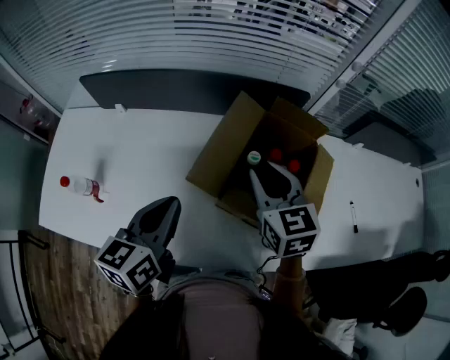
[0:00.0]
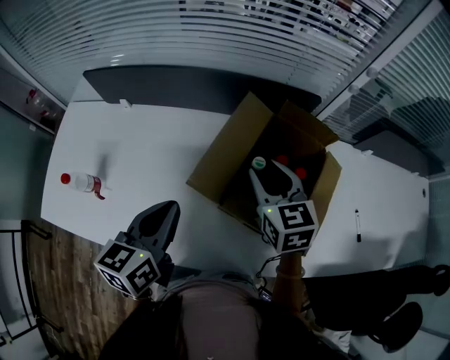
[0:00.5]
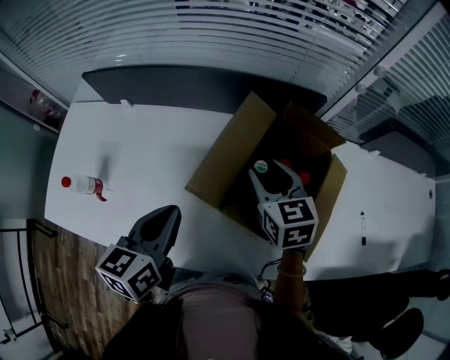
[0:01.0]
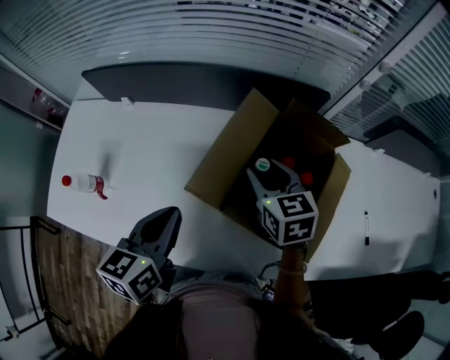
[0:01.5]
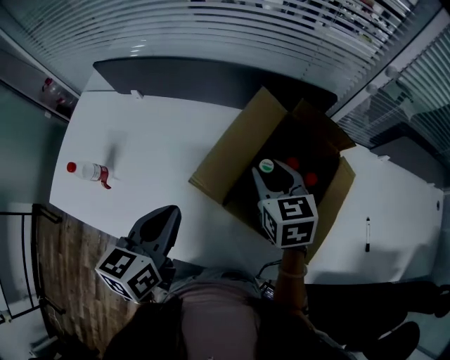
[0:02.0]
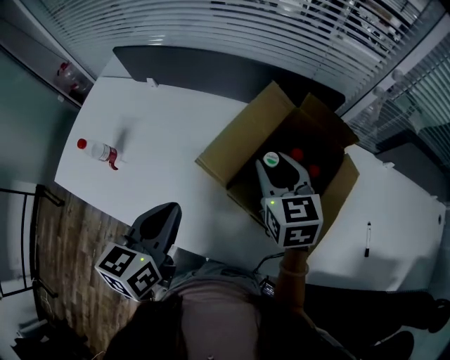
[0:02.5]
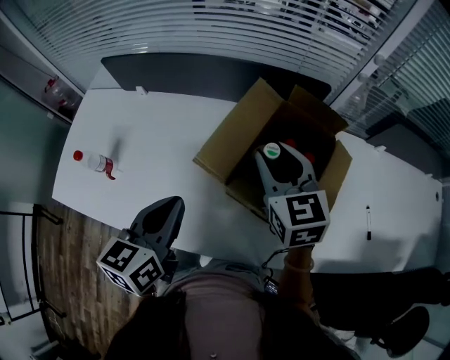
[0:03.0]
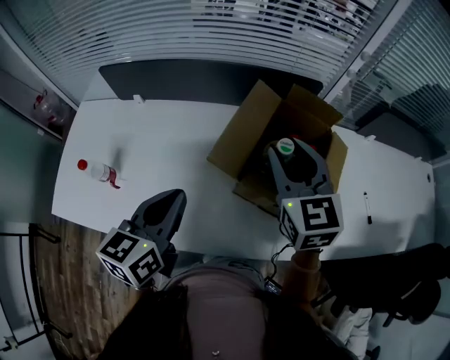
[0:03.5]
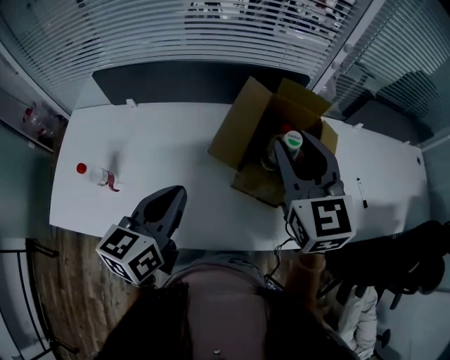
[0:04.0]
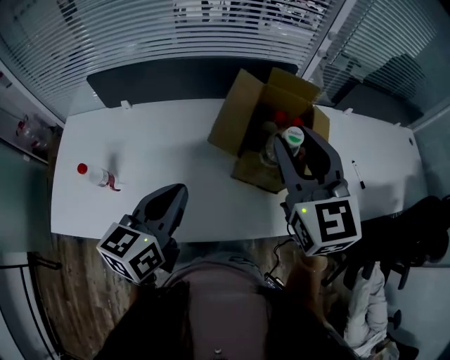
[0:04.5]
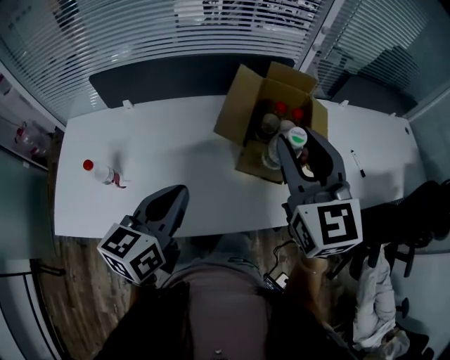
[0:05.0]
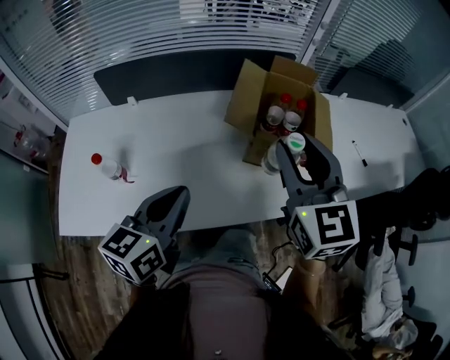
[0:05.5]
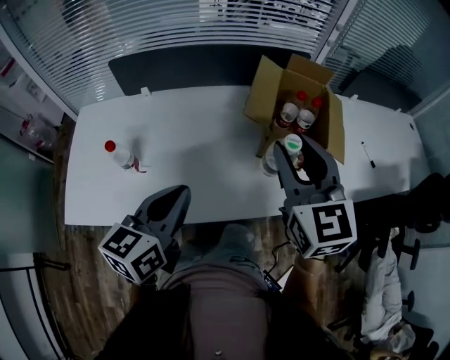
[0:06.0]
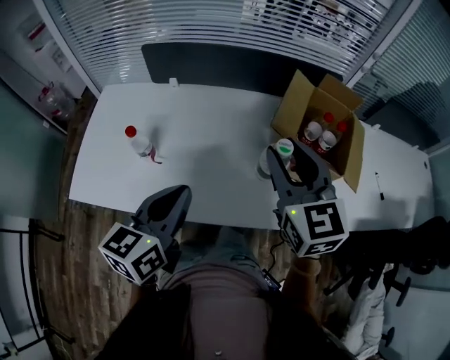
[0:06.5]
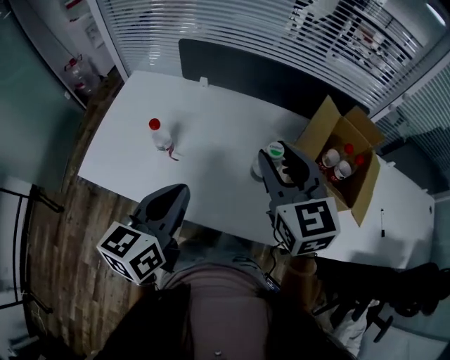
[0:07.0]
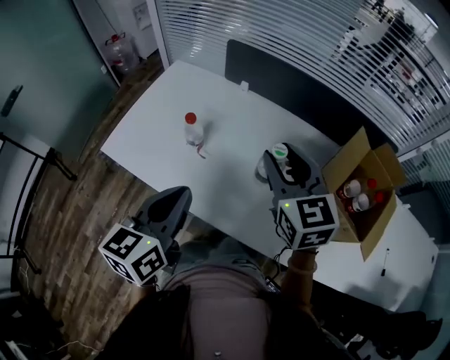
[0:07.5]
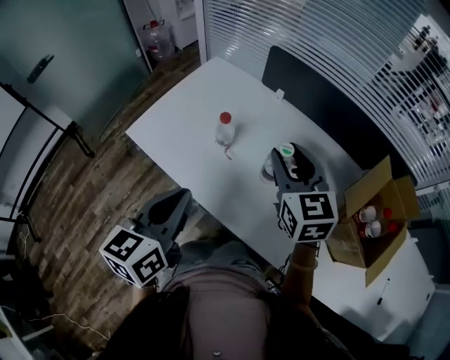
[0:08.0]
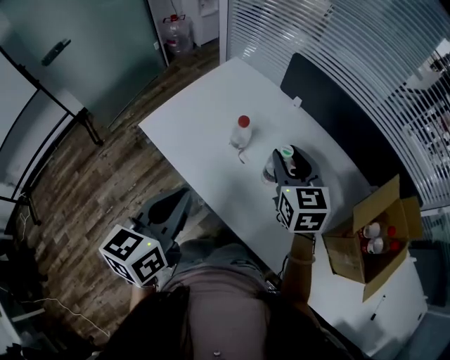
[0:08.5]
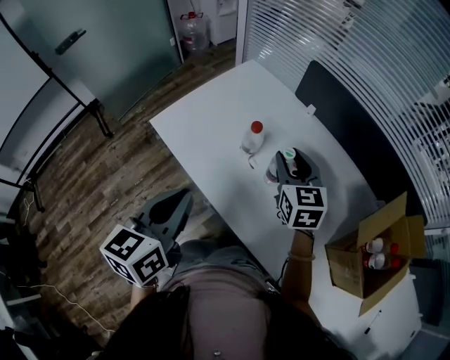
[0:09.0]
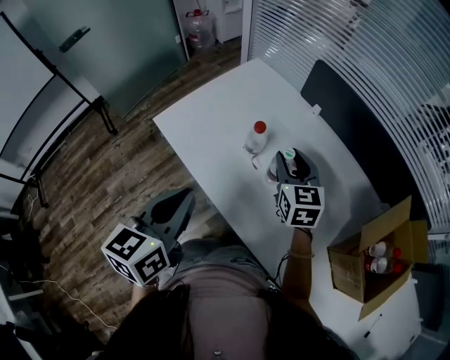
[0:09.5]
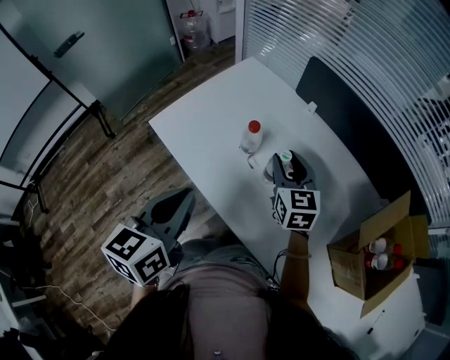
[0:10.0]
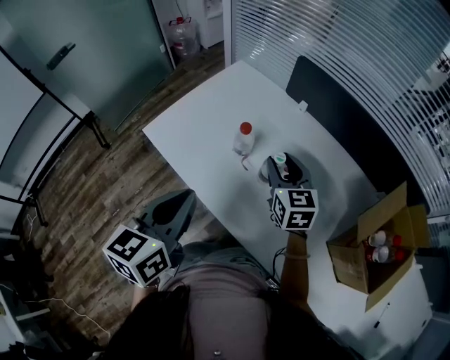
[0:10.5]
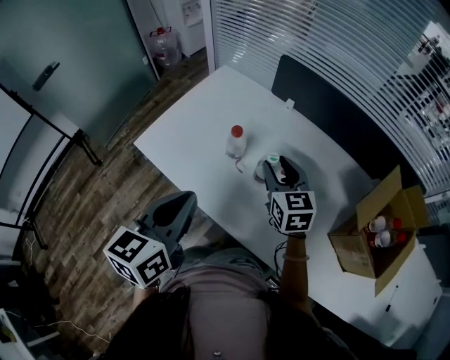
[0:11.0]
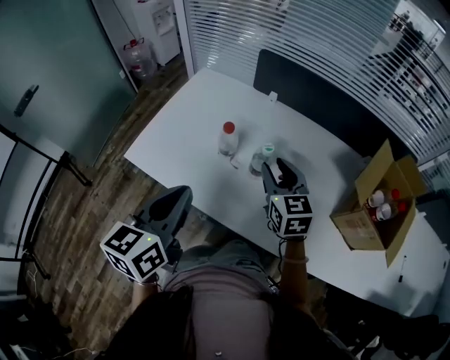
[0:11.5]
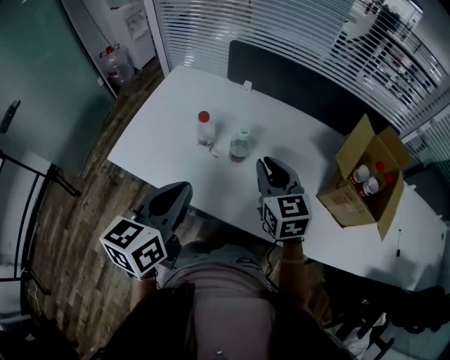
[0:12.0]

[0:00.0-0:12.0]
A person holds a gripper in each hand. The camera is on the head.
0.0 to 2.0 s: The right gripper moves downward, some 5 cm.
2.0 to 4.0 s: The right gripper is displaced upward and backward by approximately 20 cm, and changes its angle by approximately 30 degrees; the left gripper travels upward by approximately 5 cm.
4.0 to 6.0 s: The grippers both shift backward and to the left by roughly 15 cm.
6.0 to 8.0 s: The right gripper moves approximately 30 cm, and rotates some 40 degrees; the left gripper moves roughly 15 cm, and changes its angle by about 50 degrees.
8.0 to 10.0 s: The right gripper heads downward and forward, covering some 15 cm.
10.0 to 12.0 s: The right gripper moves backward, about 10 cm, and closes its fingers; the left gripper rotates roughly 30 degrees.

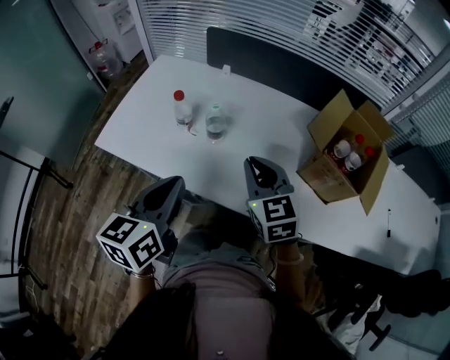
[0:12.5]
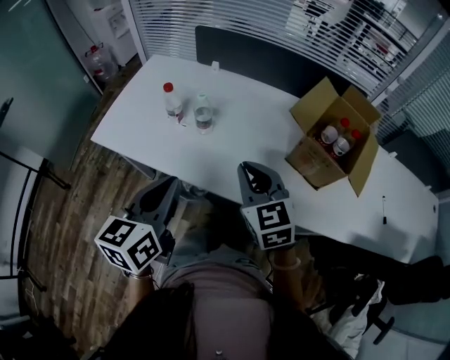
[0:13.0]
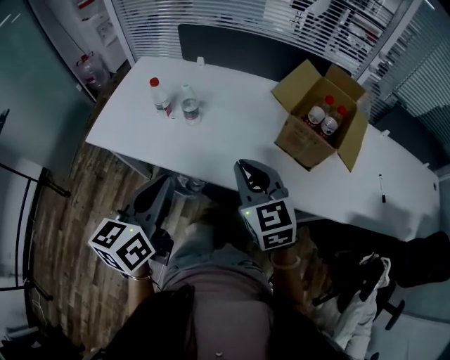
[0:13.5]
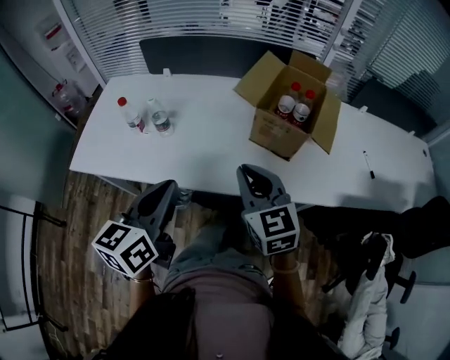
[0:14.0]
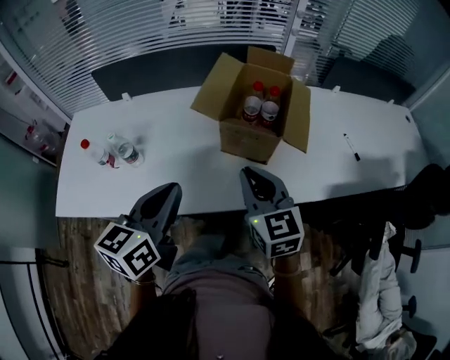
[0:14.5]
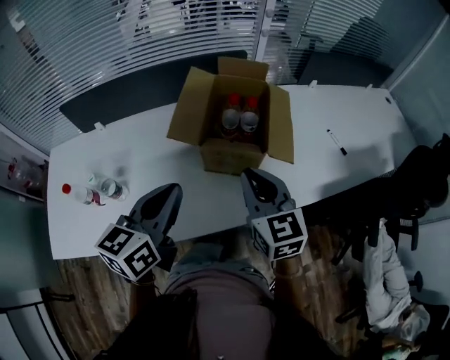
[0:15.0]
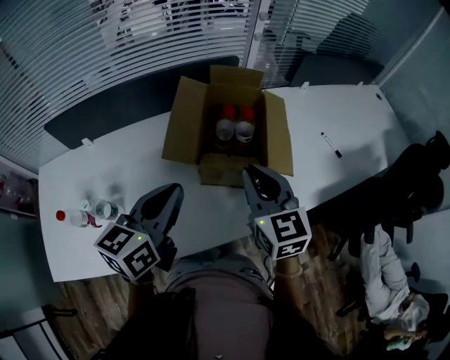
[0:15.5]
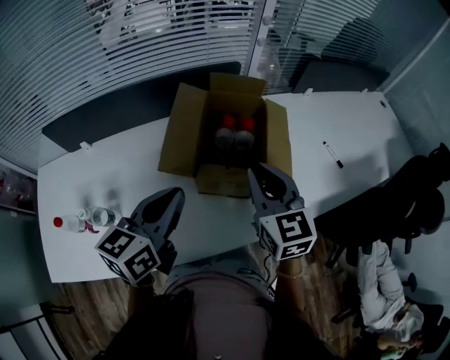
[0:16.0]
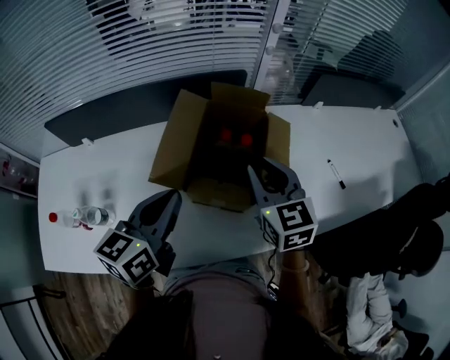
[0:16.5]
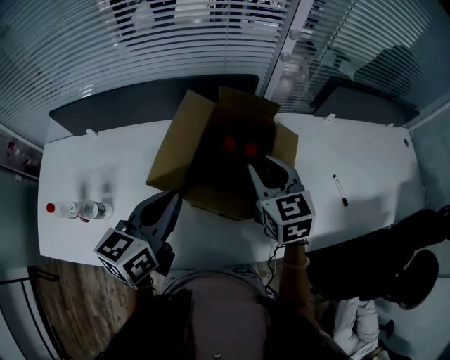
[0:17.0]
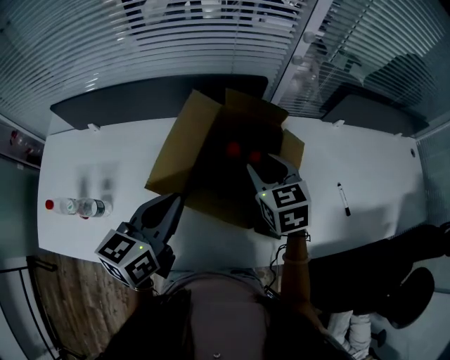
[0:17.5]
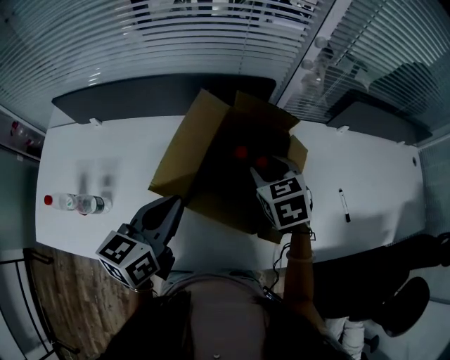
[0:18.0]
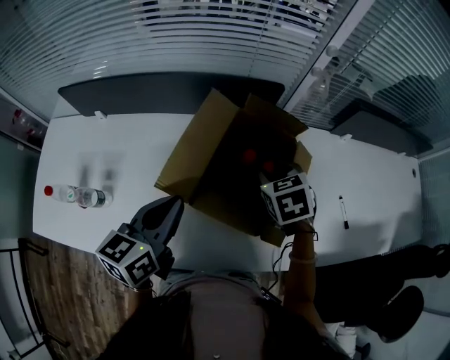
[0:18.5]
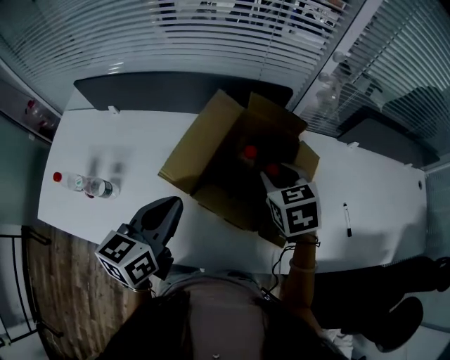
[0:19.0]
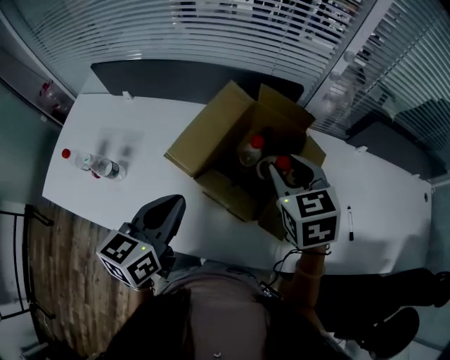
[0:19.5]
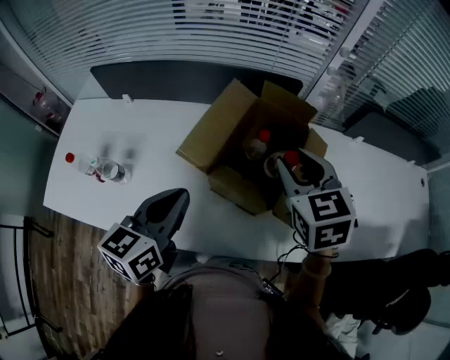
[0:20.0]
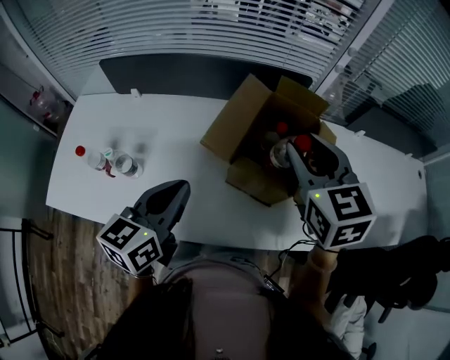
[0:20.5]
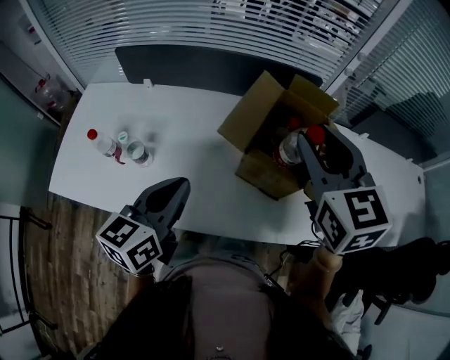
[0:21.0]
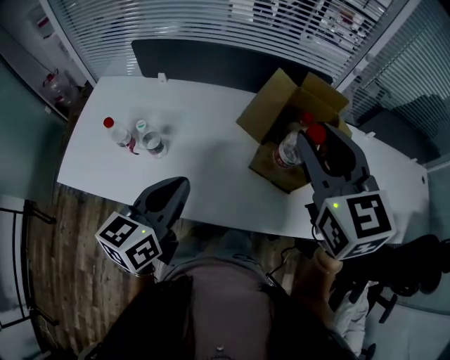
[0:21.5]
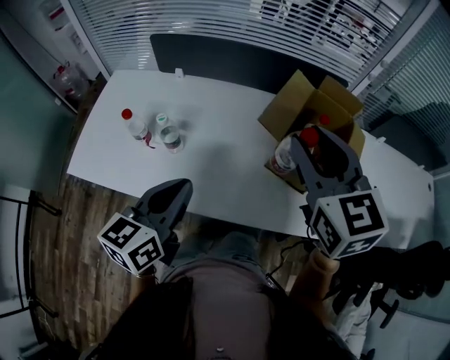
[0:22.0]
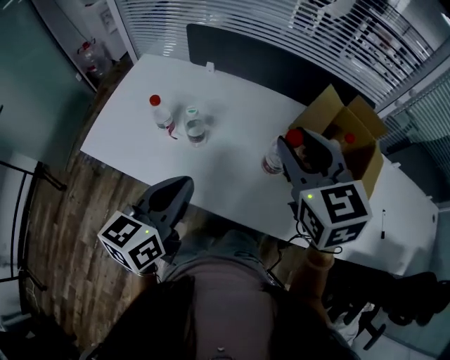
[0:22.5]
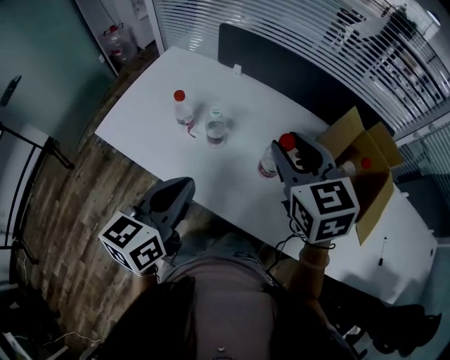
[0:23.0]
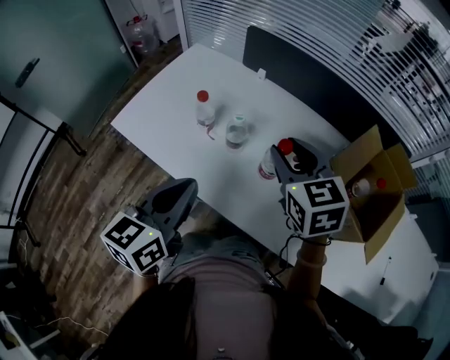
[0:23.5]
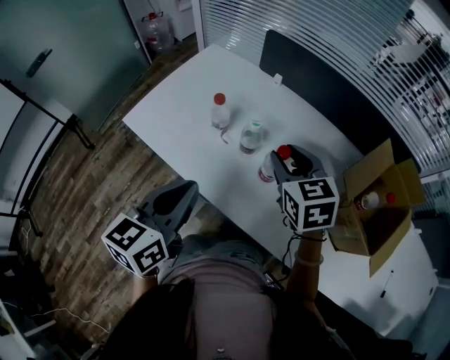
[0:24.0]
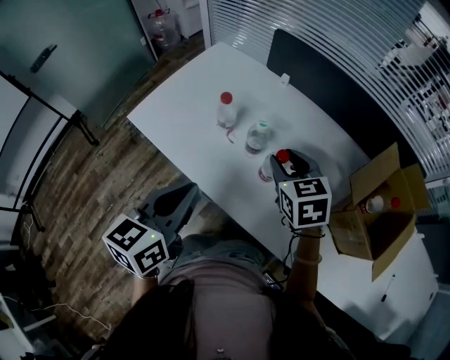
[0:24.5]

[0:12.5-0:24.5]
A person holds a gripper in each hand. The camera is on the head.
12.5 to 14.5 s: The left gripper changes place by approximately 25 cm, and turns by roughly 30 degrees, while the right gripper moves some 25 cm, and changes its angle by about 30 degrees.
14.5 to 16.5 s: Both grippers move forward, roughly 20 cm.
16.5 to 18.5 s: The right gripper is displaced downward and forward by approximately 15 cm, tilts its fingers roughly 30 degrees downward, and opens its fingers. Meanwhile the left gripper moves roughly 5 cm.
18.5 to 20.5 s: The right gripper heads upward, backward and to the left, covering roughly 25 cm, and swivels roughly 30 degrees. Meanwhile the left gripper is displaced backward and to the left by some 10 cm.
20.5 to 22.5 s: The left gripper is displaced to the left and backward by some 20 cm; the right gripper is displaced to the left by approximately 25 cm.
22.5 to 24.5 s: The left gripper shifts roughly 10 cm to the left, while the right gripper goes some 25 cm downward, to the left and forward, and changes its angle by approximately 20 degrees.

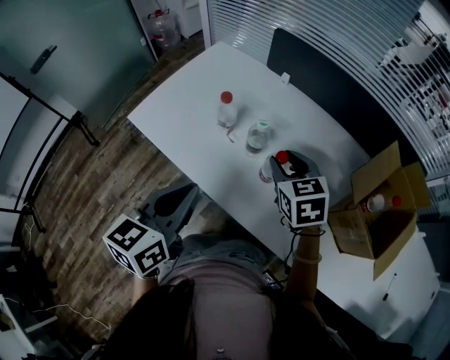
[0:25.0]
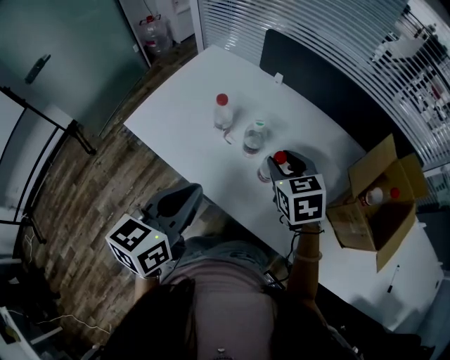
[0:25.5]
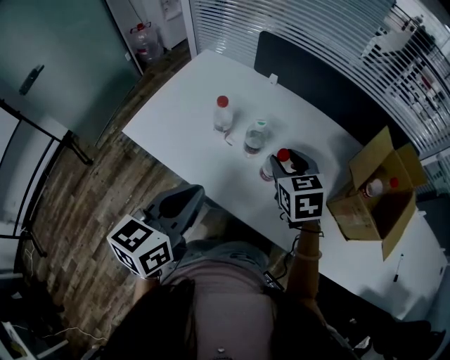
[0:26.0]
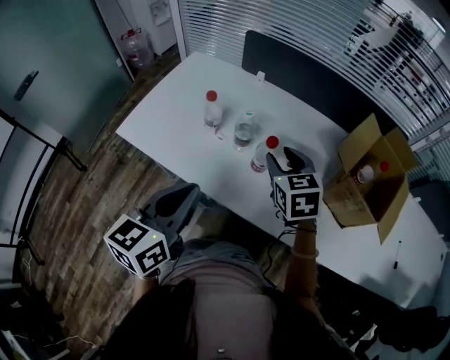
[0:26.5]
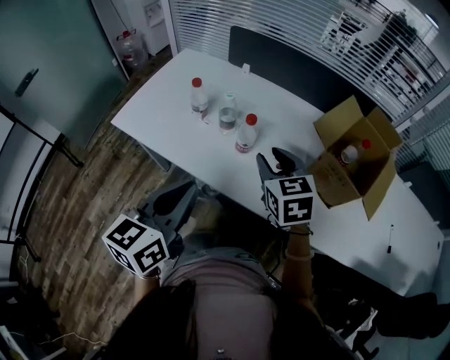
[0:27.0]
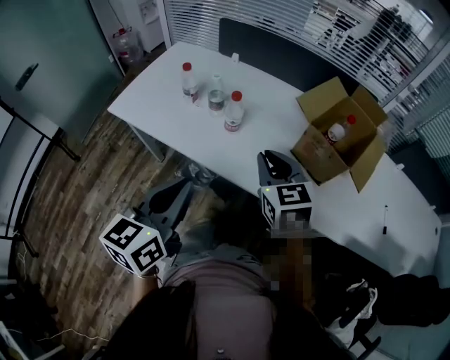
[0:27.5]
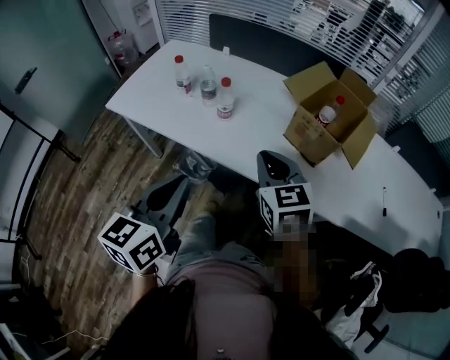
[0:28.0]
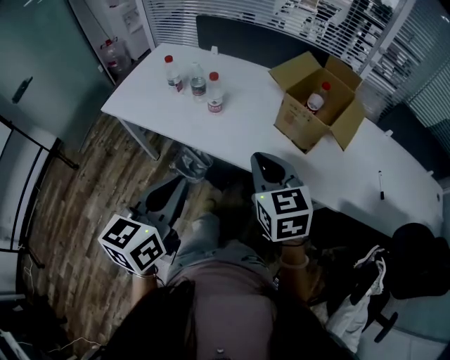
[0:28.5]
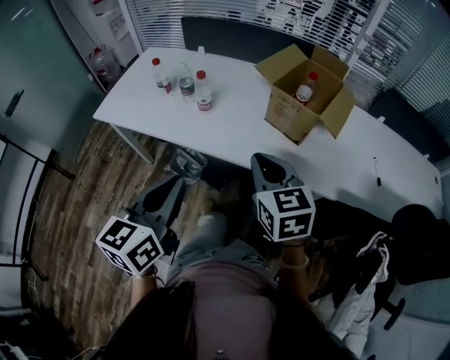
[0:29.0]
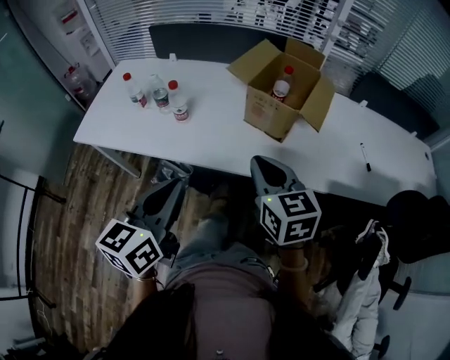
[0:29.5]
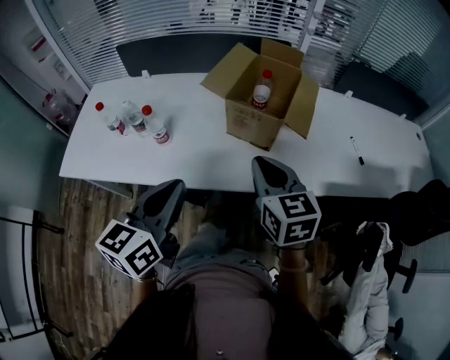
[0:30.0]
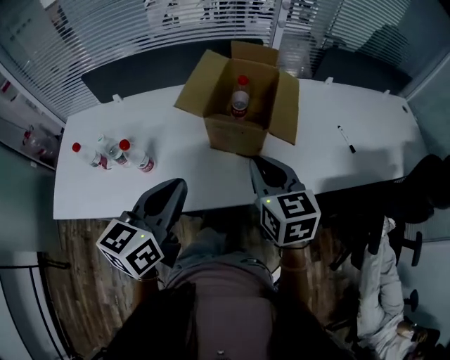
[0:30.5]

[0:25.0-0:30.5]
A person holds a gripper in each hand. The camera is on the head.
25.0 to 27.0 s: Both grippers travel together backward and to the right, about 15 cm.
27.0 to 28.5 s: The two grippers go approximately 20 cm backward and to the right. The right gripper closes.
28.5 to 30.5 s: The right gripper changes place by about 20 cm, and rotates some 30 degrees, while the left gripper changes place by roughly 25 cm, and swivels about 30 degrees.
